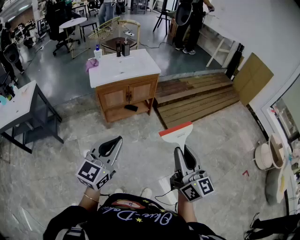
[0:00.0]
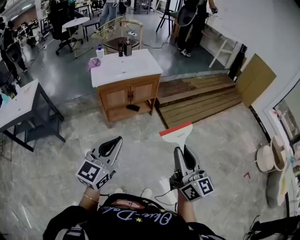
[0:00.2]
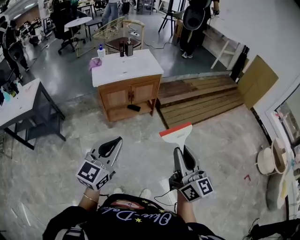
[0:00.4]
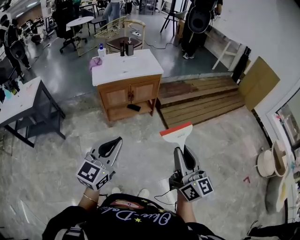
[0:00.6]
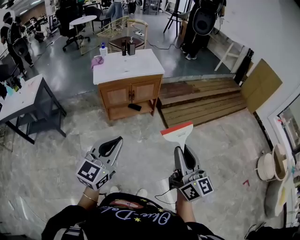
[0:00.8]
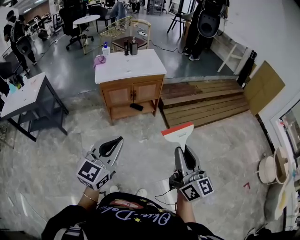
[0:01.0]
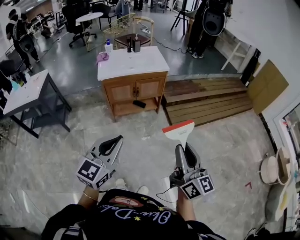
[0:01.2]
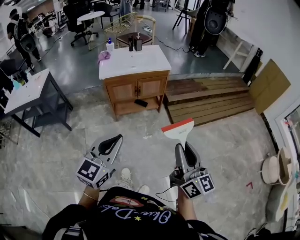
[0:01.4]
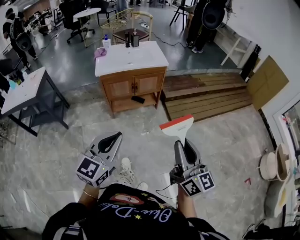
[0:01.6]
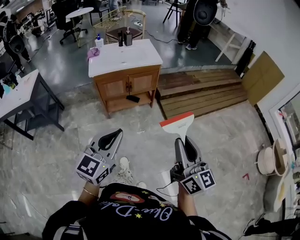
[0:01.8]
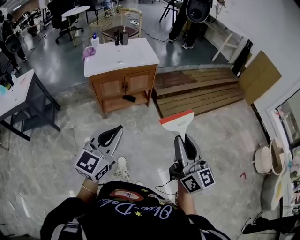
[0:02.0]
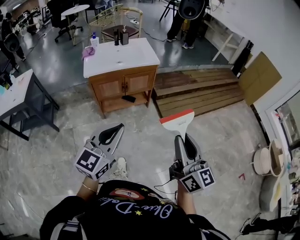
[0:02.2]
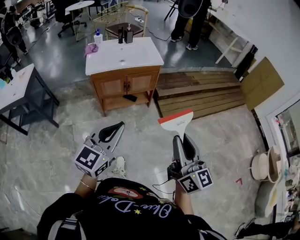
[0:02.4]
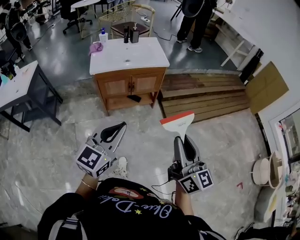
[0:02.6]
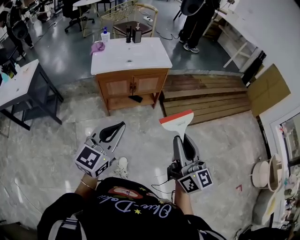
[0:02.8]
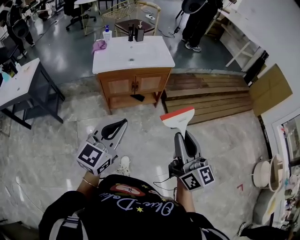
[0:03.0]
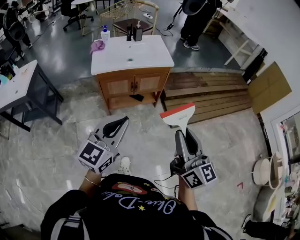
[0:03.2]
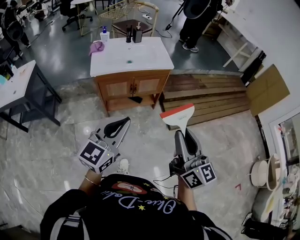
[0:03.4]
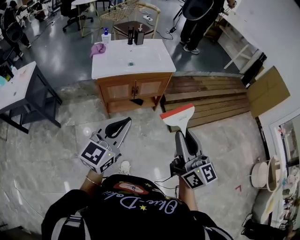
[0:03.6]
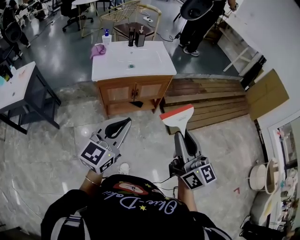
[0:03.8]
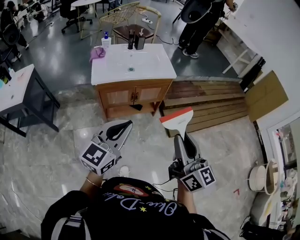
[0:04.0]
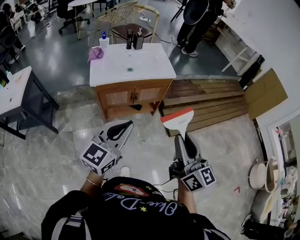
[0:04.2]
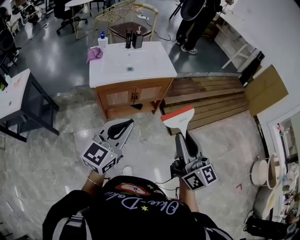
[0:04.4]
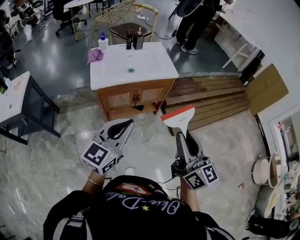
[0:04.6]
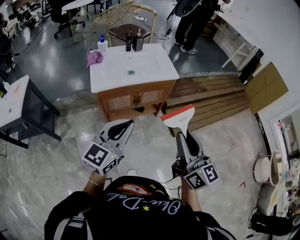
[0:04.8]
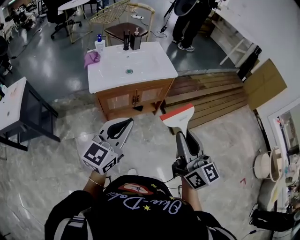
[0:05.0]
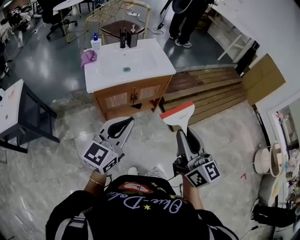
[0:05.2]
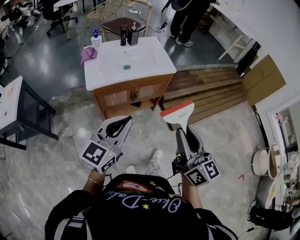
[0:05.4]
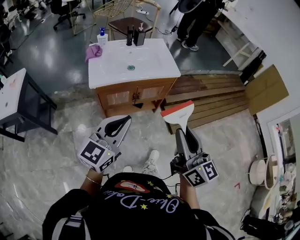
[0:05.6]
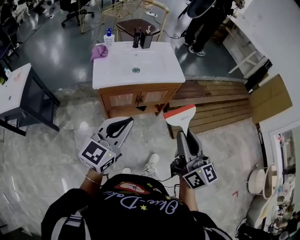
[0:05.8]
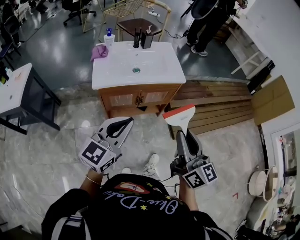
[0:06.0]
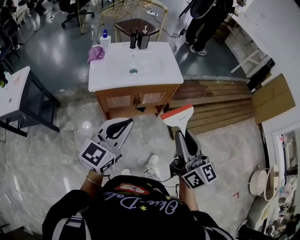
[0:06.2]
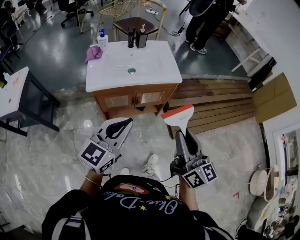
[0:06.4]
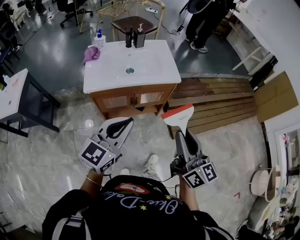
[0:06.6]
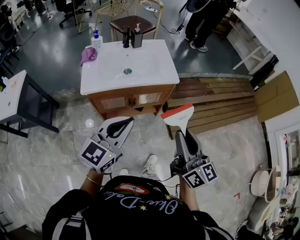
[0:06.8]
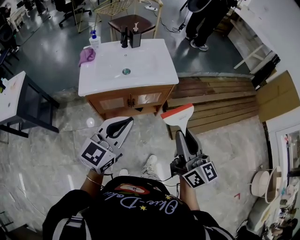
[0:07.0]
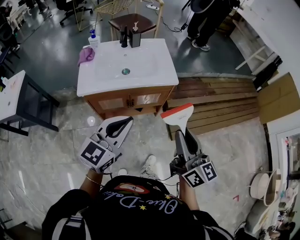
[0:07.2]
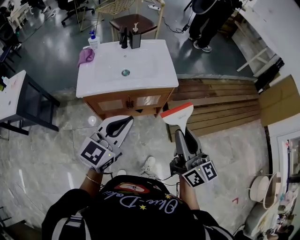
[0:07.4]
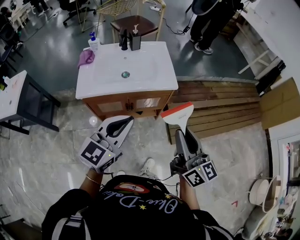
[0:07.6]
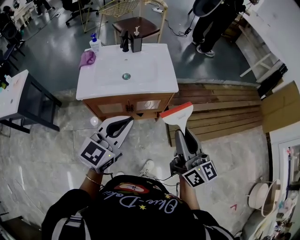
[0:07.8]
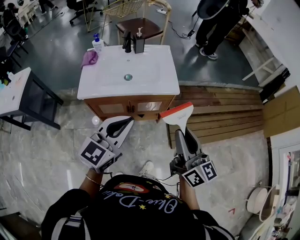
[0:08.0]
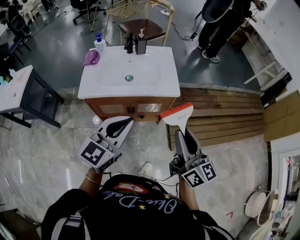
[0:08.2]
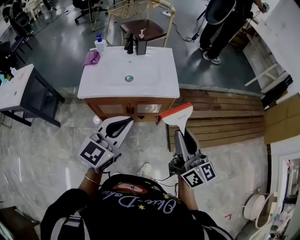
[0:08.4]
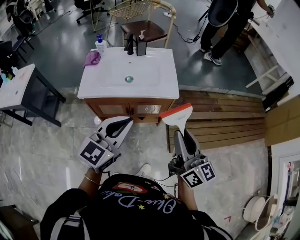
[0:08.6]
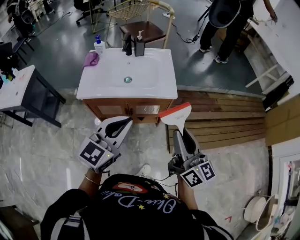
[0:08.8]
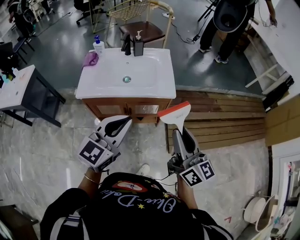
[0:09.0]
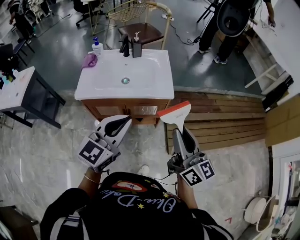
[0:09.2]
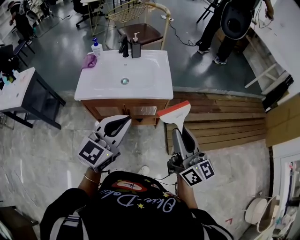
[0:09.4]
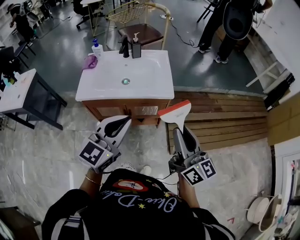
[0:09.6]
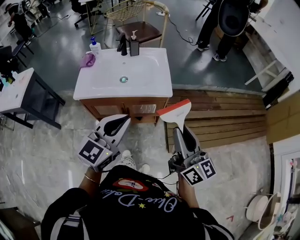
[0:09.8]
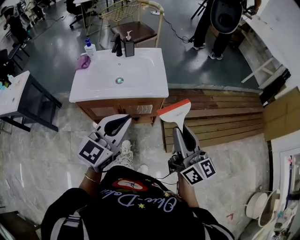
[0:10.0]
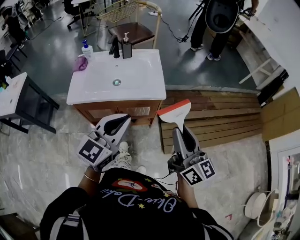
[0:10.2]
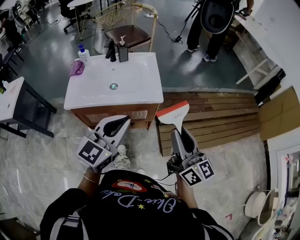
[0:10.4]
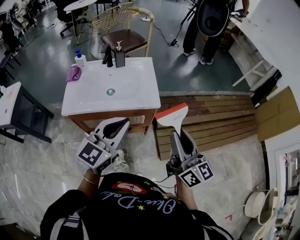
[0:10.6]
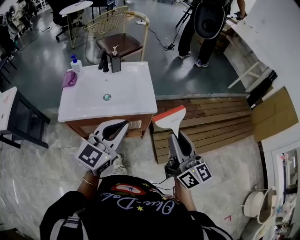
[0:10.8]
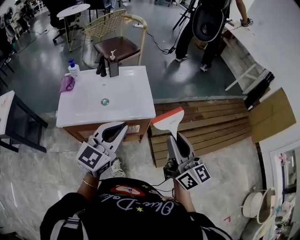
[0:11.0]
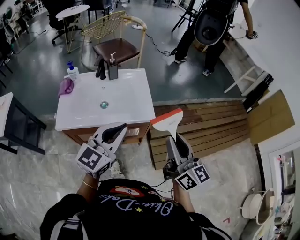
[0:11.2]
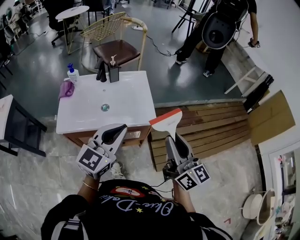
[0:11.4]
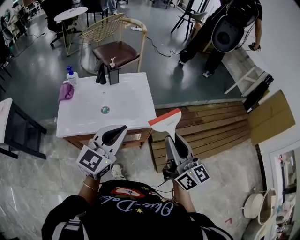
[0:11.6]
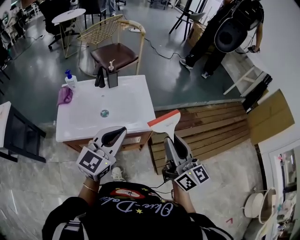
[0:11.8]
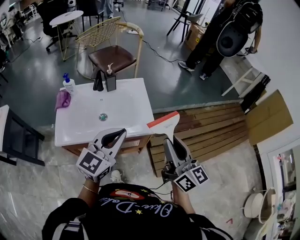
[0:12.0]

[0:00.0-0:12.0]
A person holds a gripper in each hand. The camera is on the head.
0:00.0 to 0:01.6: The right gripper ends up approximately 5 cm from where it was; the left gripper is displaced to the right by roughly 5 cm.
0:01.6 to 0:03.0: Both grippers travel together forward, roughly 10 cm.
0:03.0 to 0:04.4: The right gripper heads forward and to the left, covering approximately 10 cm. The left gripper moves forward, roughly 10 cm.
0:04.4 to 0:06.0: Both grippers travel together forward, some 5 cm.
0:06.0 to 0:07.6: Both grippers move forward and to the right, about 15 cm.
0:07.6 to 0:09.0: The right gripper moves about 5 cm.
0:09.0 to 0:10.4: The left gripper changes place by about 5 cm.
0:10.4 to 0:12.0: Both grippers travel together forward, about 10 cm.

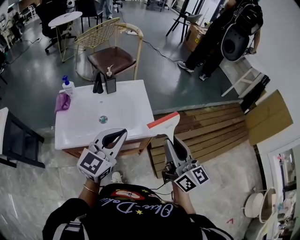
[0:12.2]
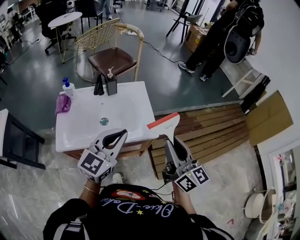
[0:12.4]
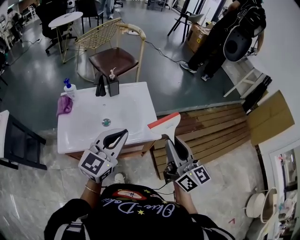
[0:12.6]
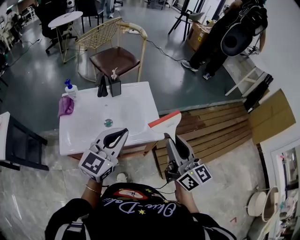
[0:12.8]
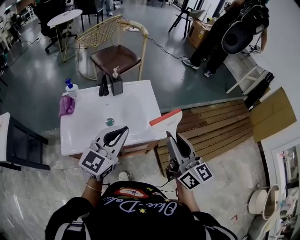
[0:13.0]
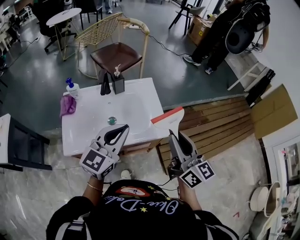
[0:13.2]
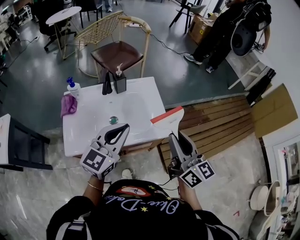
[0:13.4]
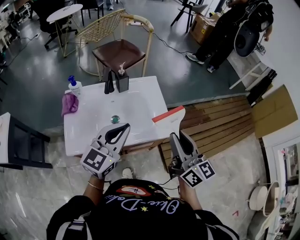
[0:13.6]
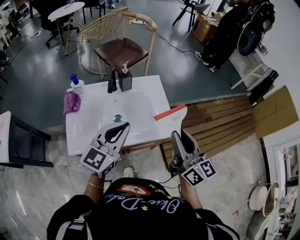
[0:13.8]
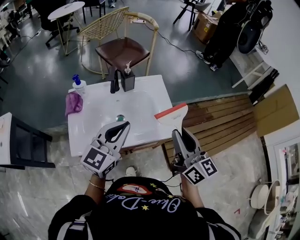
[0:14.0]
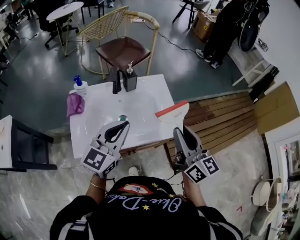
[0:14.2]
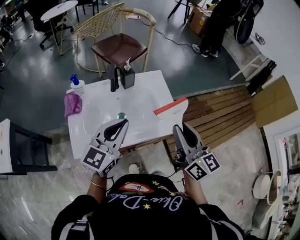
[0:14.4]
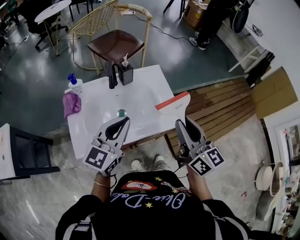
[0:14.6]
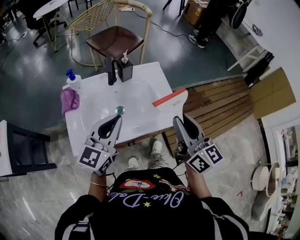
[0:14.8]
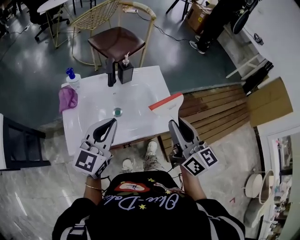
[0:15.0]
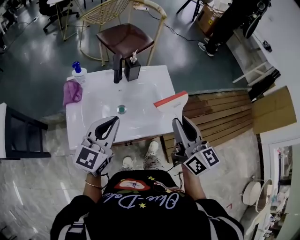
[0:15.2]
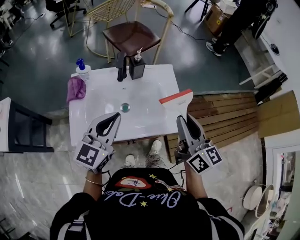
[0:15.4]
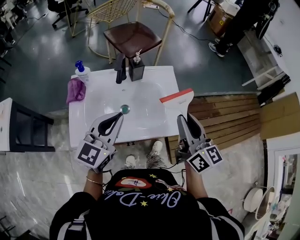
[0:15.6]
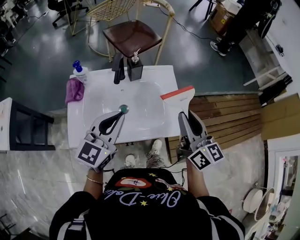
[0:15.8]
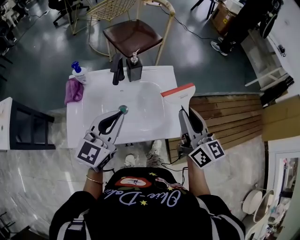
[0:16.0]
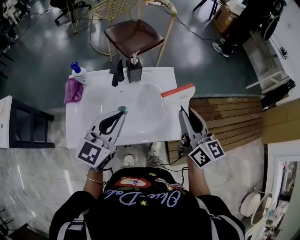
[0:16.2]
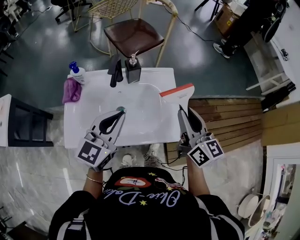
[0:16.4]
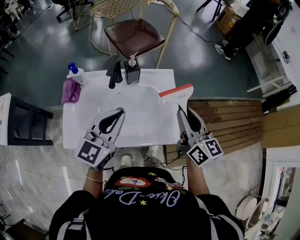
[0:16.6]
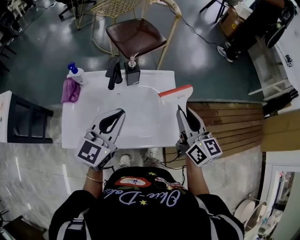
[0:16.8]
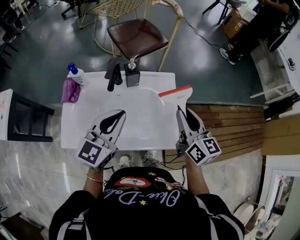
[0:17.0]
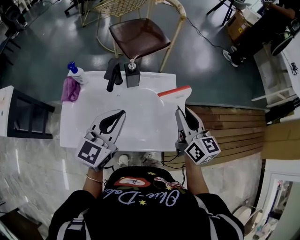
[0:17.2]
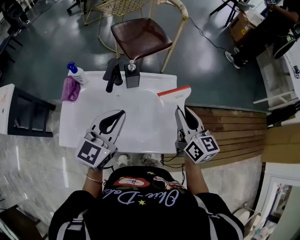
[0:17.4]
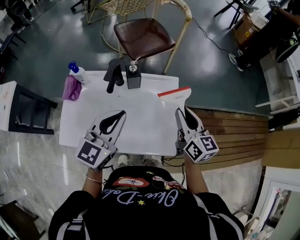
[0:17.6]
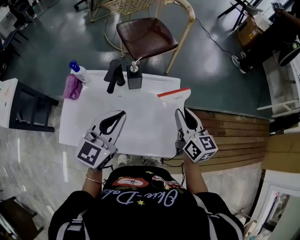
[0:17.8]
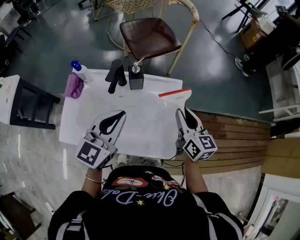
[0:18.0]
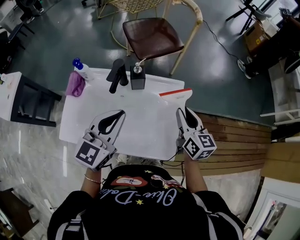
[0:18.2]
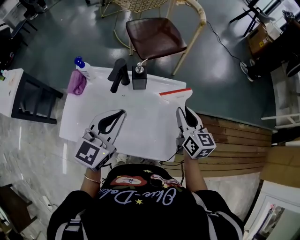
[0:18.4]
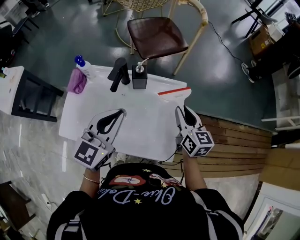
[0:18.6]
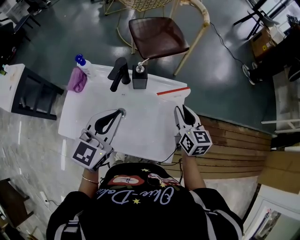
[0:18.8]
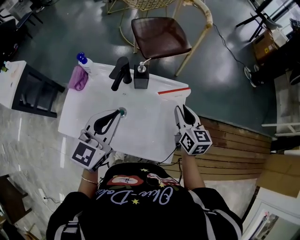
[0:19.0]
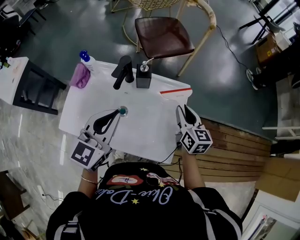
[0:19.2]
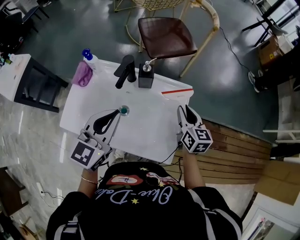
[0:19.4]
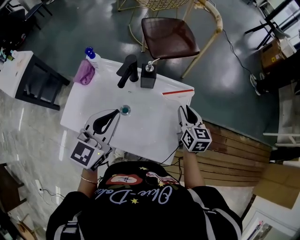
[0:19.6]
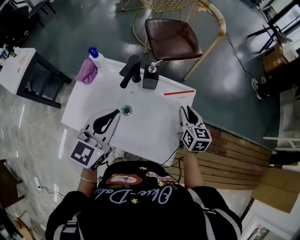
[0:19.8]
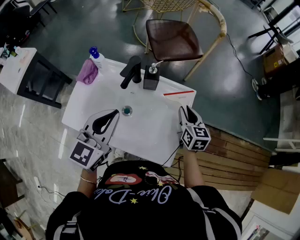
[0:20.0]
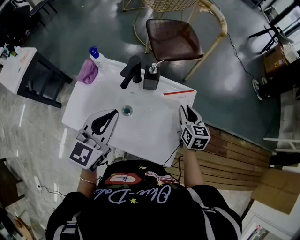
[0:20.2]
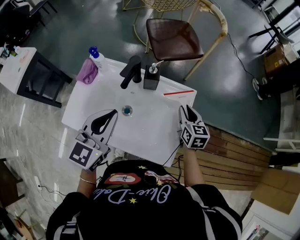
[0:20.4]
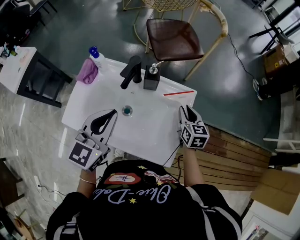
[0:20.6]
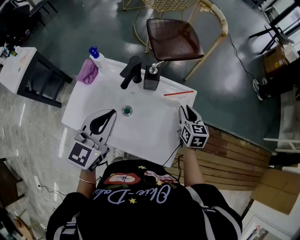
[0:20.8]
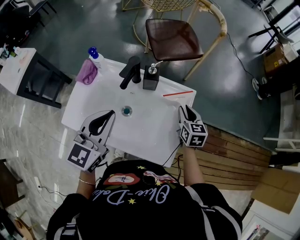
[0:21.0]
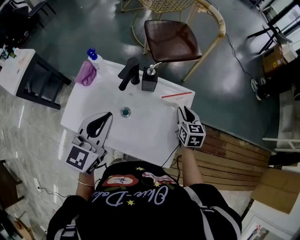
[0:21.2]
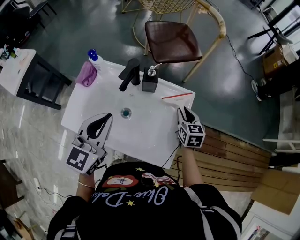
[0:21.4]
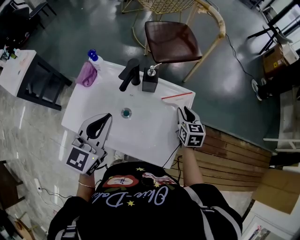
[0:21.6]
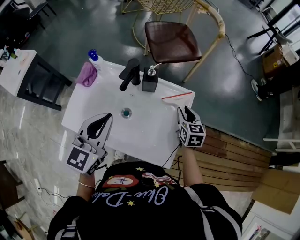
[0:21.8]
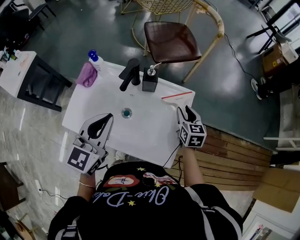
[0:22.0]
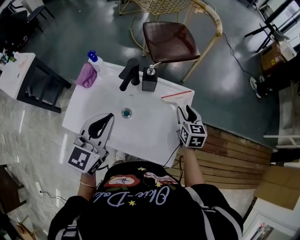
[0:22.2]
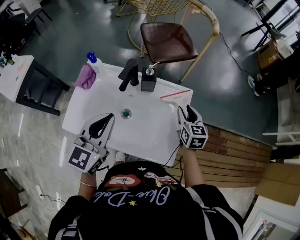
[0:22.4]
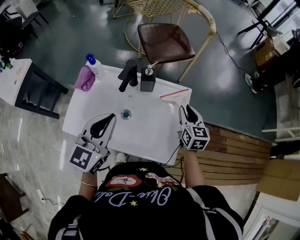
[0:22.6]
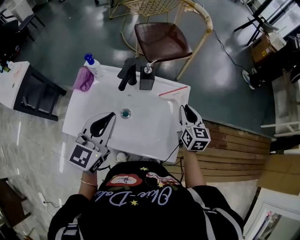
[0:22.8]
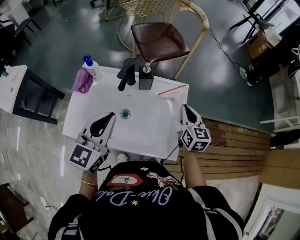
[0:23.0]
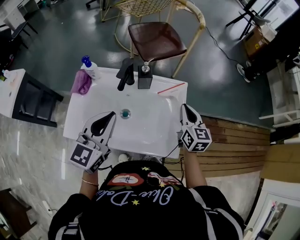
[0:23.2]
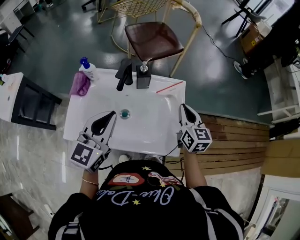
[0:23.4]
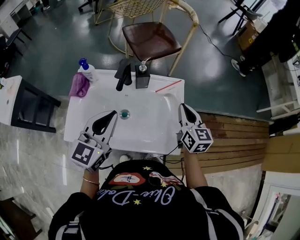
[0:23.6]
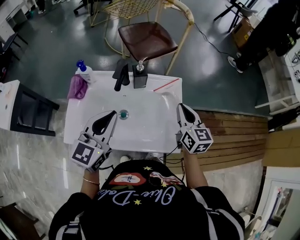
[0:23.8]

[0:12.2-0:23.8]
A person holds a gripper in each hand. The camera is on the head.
0:12.2 to 0:13.6: Both grippers travel together to the left, approximately 5 cm.
0:13.6 to 0:15.0: The right gripper moves to the left, some 5 cm. The left gripper shifts about 10 cm to the left.
0:15.0 to 0:16.6: The left gripper moves forward, about 5 cm. Meanwhile the right gripper goes approximately 10 cm forward.
0:16.6 to 0:18.0: The right gripper moves forward and downward, approximately 10 cm.
0:18.0 to 0:19.4: The right gripper is displaced downward by roughly 5 cm.
0:19.4 to 0:21.0: The right gripper shifts roughly 5 cm downward.
0:21.0 to 0:22.4: The grippers make only small movements.
0:22.4 to 0:23.8: The right gripper is displaced upward and backward by some 10 cm, and closes up.
